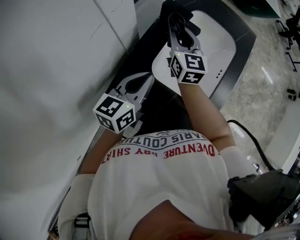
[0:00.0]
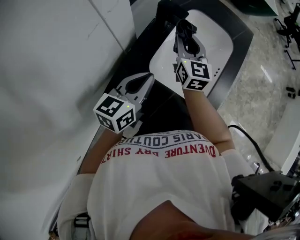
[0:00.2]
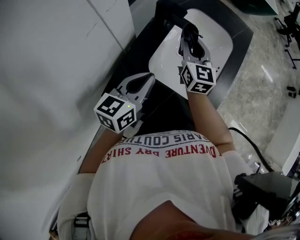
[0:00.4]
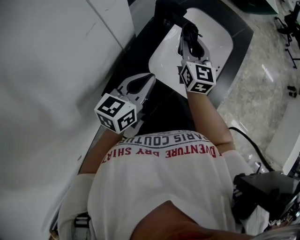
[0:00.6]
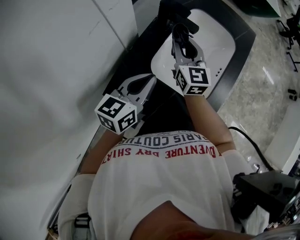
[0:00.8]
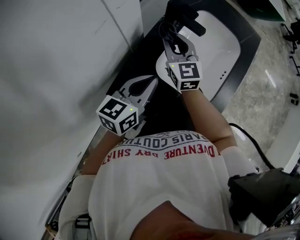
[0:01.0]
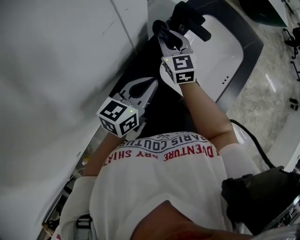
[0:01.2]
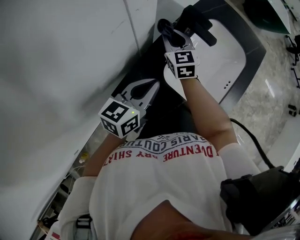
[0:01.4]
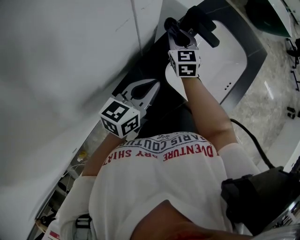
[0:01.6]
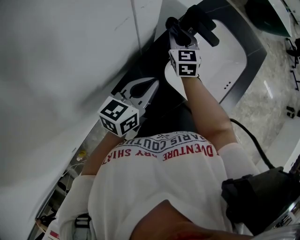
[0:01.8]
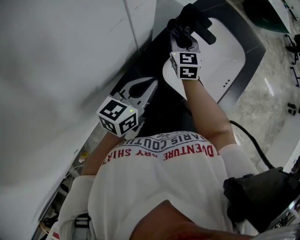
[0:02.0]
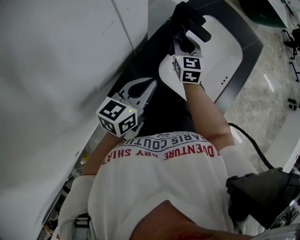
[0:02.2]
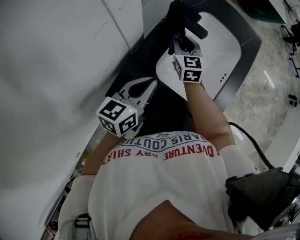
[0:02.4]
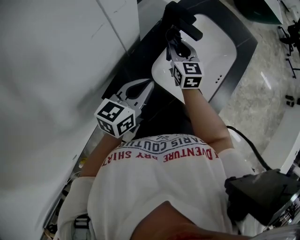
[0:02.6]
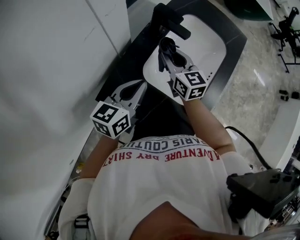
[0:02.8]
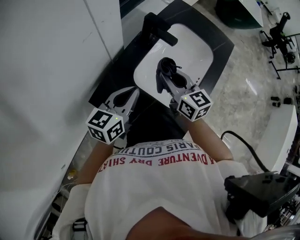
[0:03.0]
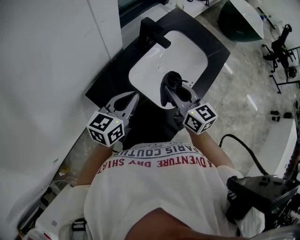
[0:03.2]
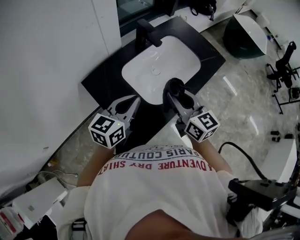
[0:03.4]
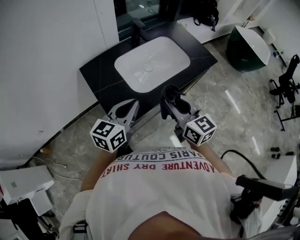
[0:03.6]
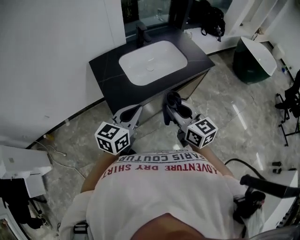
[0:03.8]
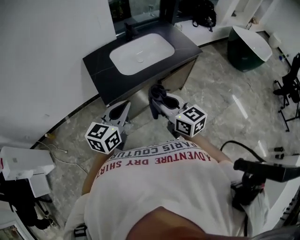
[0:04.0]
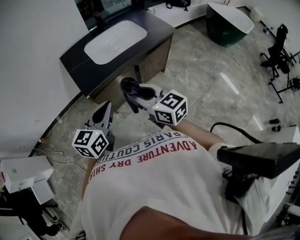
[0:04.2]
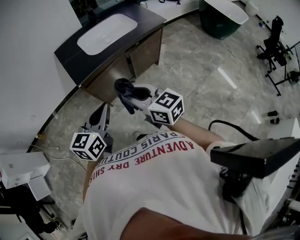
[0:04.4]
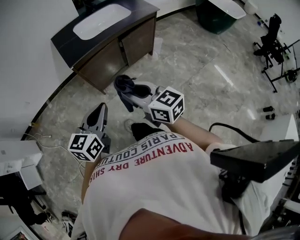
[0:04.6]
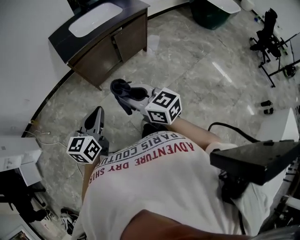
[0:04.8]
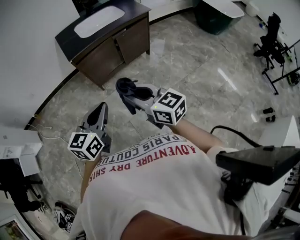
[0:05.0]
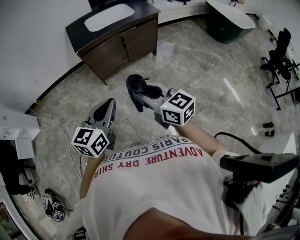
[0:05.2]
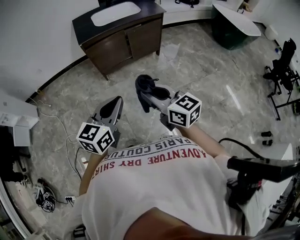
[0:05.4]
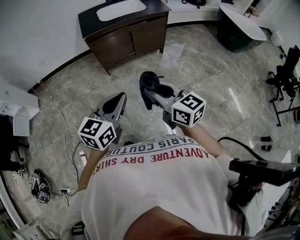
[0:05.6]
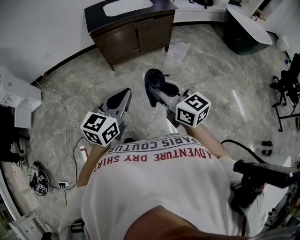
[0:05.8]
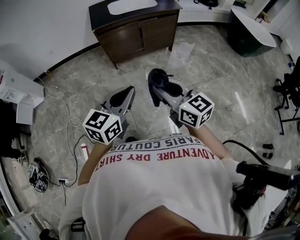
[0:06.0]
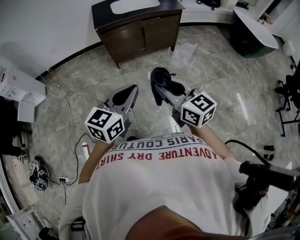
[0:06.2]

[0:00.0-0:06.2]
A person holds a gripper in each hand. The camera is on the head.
0.0 to 1.6 s: The right gripper goes some 10 cm downward and to the left, and swivels some 20 degrees.
1.6 to 3.2 s: The right gripper shifts approximately 30 cm backward, to the right and upward, and rotates approximately 30 degrees. Meanwhile the left gripper moves to the right, backward and upward, about 10 cm.
3.2 to 4.6 s: The two grippers travel together, some 70 cm. The right gripper rotates about 30 degrees, while the left gripper swivels about 30 degrees.
4.6 to 6.2 s: Both grippers move backward and to the right, some 35 cm.

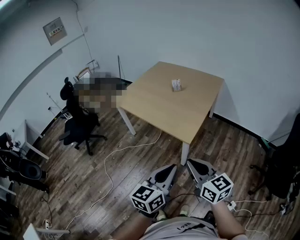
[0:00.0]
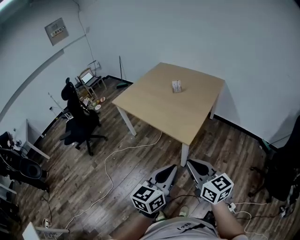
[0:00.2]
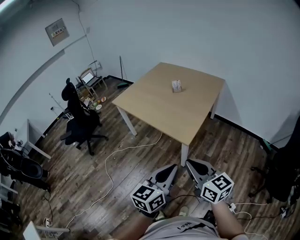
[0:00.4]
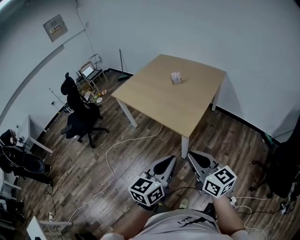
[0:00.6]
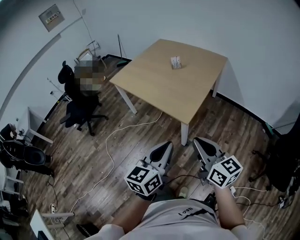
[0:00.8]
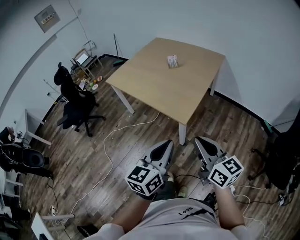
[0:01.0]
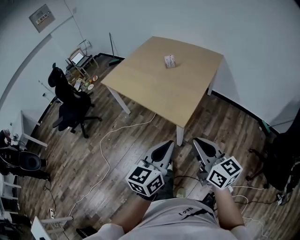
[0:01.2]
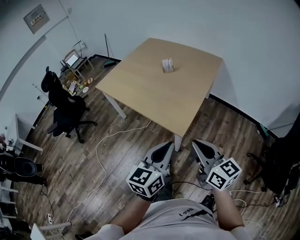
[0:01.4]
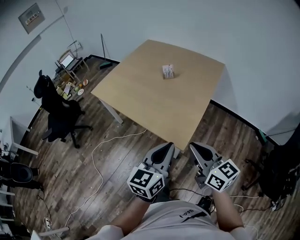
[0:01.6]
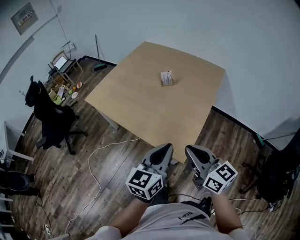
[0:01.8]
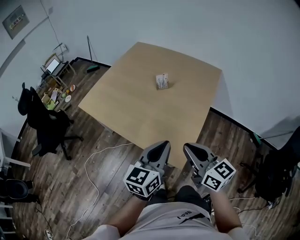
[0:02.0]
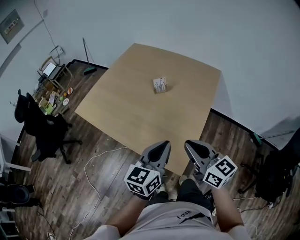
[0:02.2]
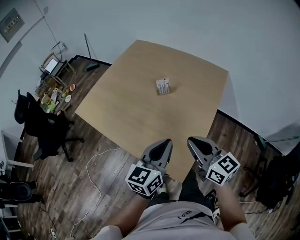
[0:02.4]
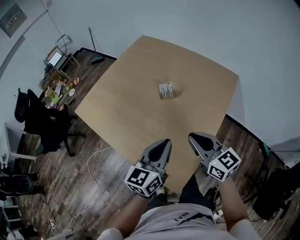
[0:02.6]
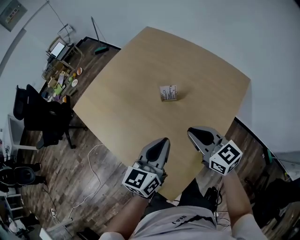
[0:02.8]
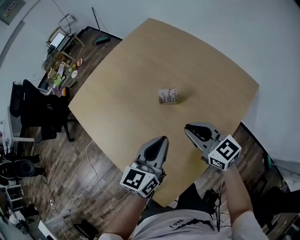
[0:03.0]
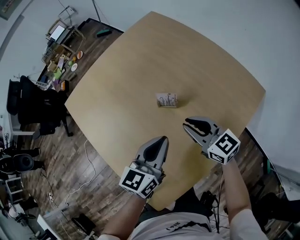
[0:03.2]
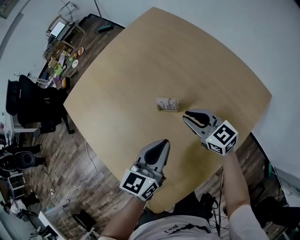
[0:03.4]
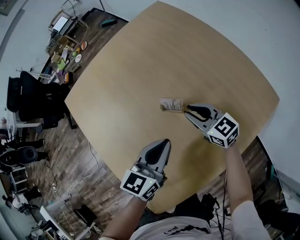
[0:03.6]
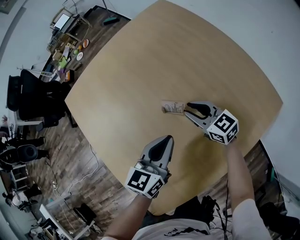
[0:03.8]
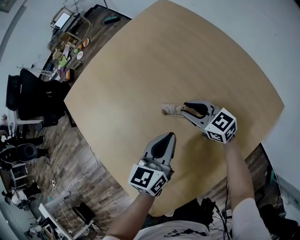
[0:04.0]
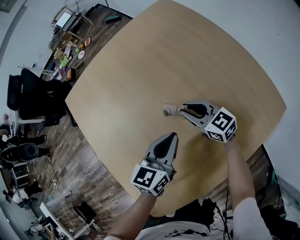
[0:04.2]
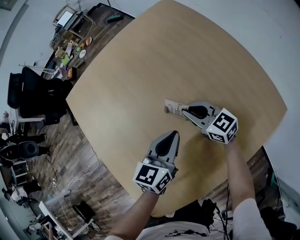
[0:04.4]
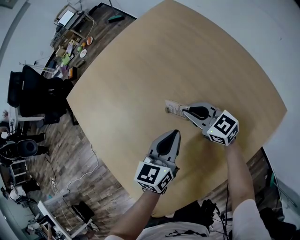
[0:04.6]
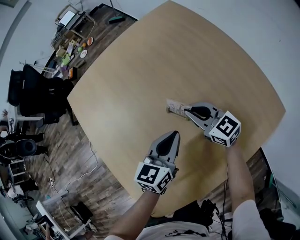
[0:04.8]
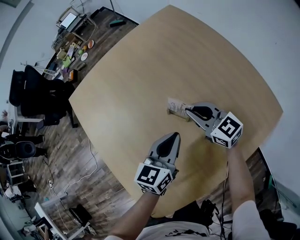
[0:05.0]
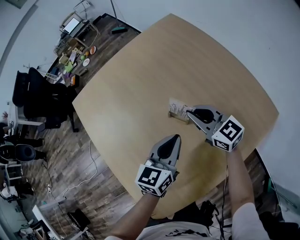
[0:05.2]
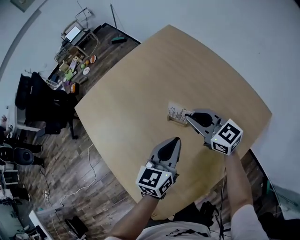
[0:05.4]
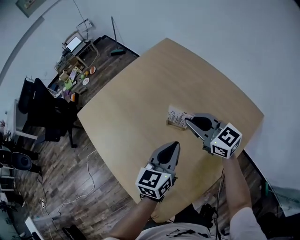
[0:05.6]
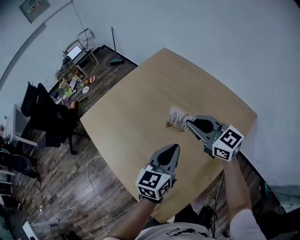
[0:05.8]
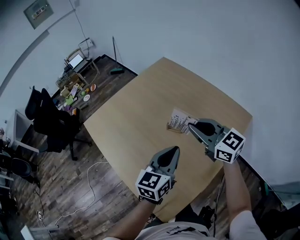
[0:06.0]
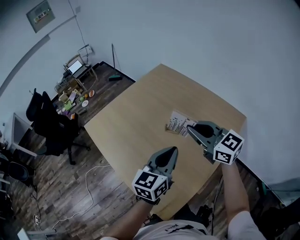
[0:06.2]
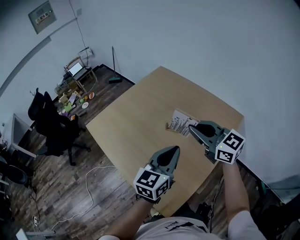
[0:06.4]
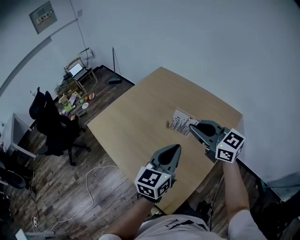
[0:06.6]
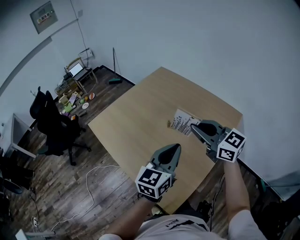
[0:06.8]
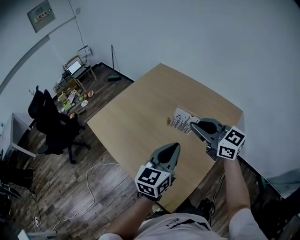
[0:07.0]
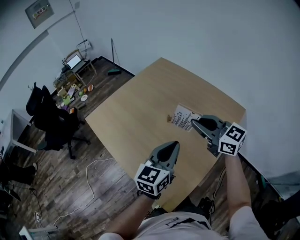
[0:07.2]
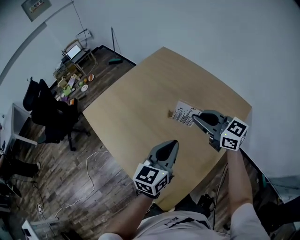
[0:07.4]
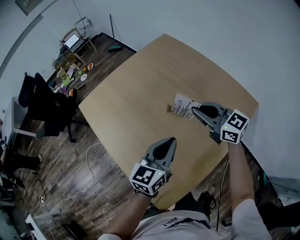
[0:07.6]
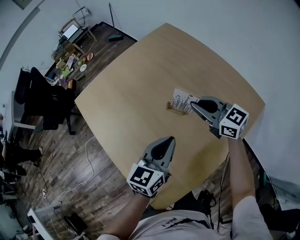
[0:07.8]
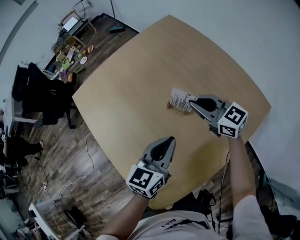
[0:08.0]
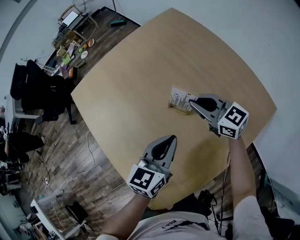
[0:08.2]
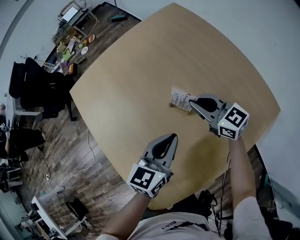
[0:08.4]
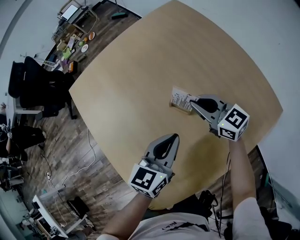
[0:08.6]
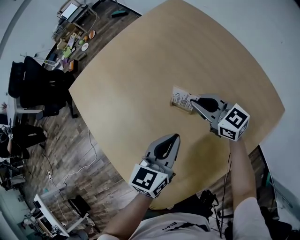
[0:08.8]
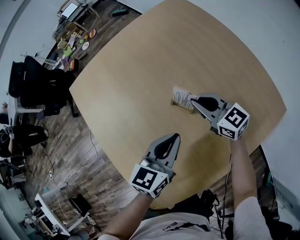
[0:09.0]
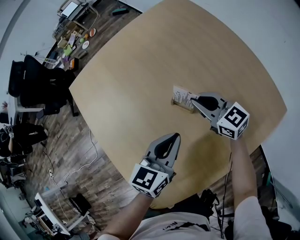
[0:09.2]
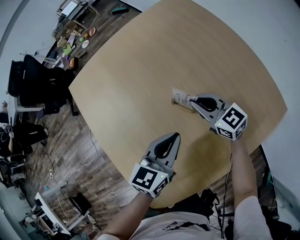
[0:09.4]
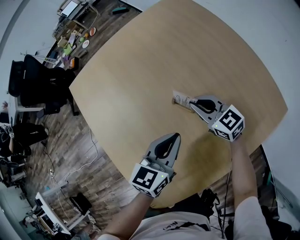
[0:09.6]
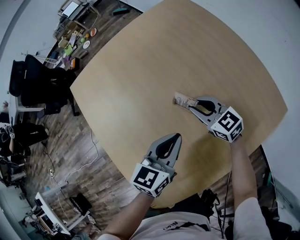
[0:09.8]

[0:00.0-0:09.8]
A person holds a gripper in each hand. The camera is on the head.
0.0 to 1.4 s: The left gripper is displaced forward by approximately 15 cm; the right gripper travels forward and to the right by about 15 cm.
1.4 to 2.8 s: The two grippers travel together, forward, about 50 cm. The right gripper changes its angle by about 20 degrees.
2.8 to 4.2 s: The left gripper goes approximately 20 cm downward, forward and to the right. Meanwhile the right gripper heads forward and downward, covering about 30 cm, and turns by some 30 degrees.
4.2 to 5.6 s: The left gripper shifts some 10 cm upward, while the right gripper travels upward by about 20 cm.
5.6 to 7.0 s: The grippers both shift upward and backward by about 20 cm.
7.0 to 8.4 s: Both grippers move downward and forward, some 30 cm.
8.4 to 9.8 s: The right gripper shifts roughly 10 cm downward.

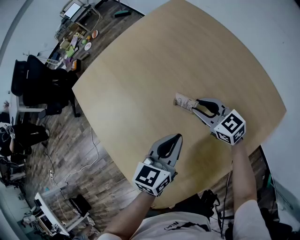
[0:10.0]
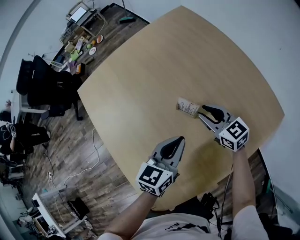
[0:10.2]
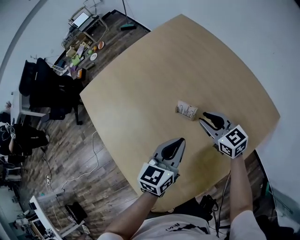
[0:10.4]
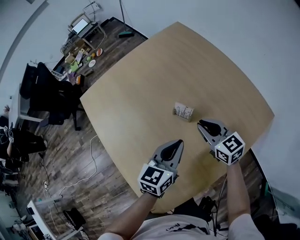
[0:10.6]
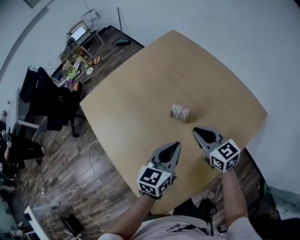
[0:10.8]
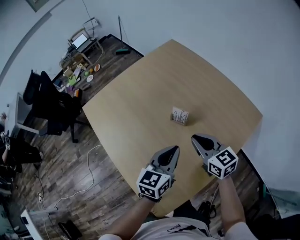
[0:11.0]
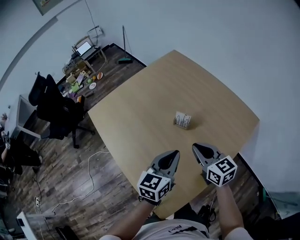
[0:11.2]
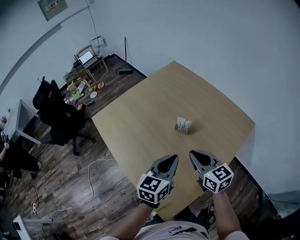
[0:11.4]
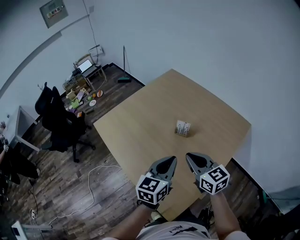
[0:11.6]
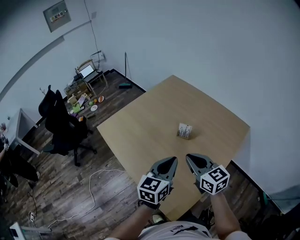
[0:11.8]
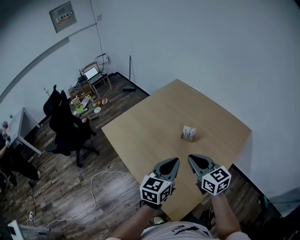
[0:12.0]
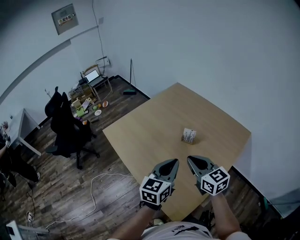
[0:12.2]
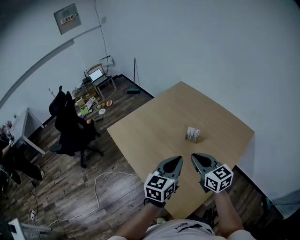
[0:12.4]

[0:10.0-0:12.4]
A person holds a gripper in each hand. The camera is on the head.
10.0 to 11.2 s: The left gripper moves upward and backward, approximately 15 cm; the right gripper shifts about 20 cm upward and backward, turns by approximately 20 degrees, and closes.
11.2 to 12.4 s: The right gripper shifts about 15 cm to the left, upward and backward; the left gripper travels upward, to the left and backward by some 15 cm.

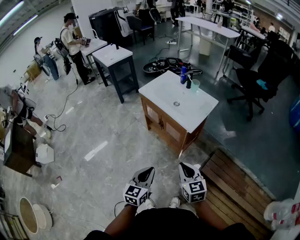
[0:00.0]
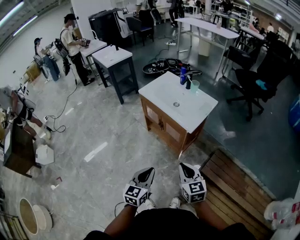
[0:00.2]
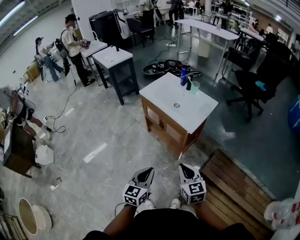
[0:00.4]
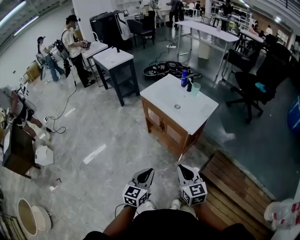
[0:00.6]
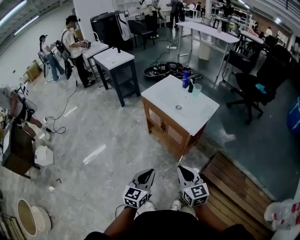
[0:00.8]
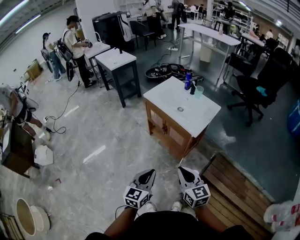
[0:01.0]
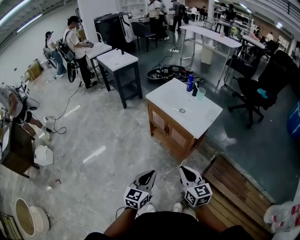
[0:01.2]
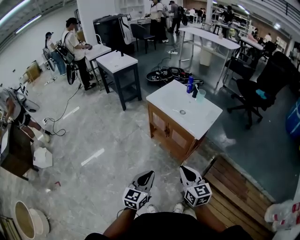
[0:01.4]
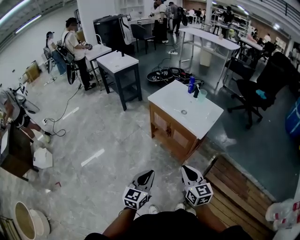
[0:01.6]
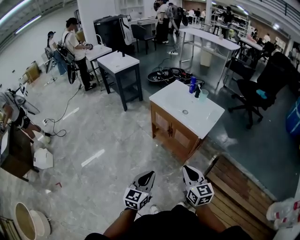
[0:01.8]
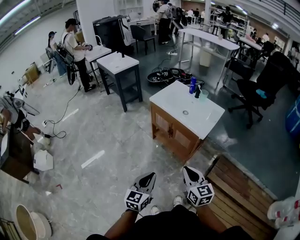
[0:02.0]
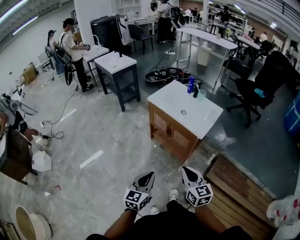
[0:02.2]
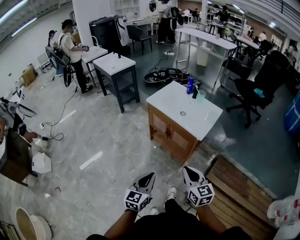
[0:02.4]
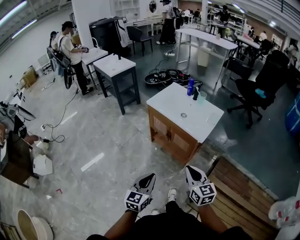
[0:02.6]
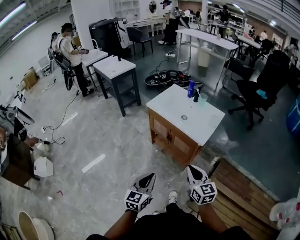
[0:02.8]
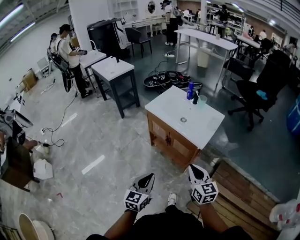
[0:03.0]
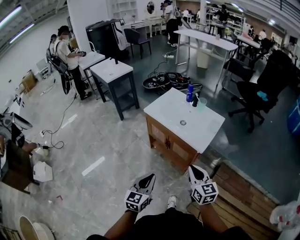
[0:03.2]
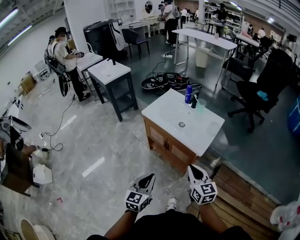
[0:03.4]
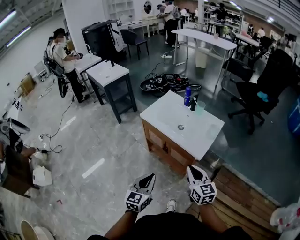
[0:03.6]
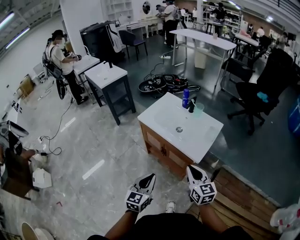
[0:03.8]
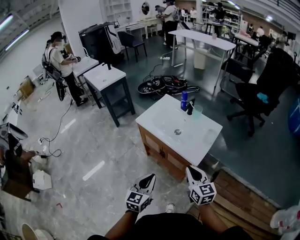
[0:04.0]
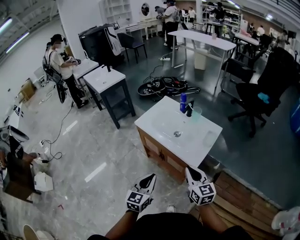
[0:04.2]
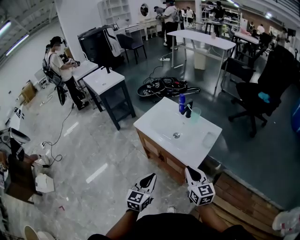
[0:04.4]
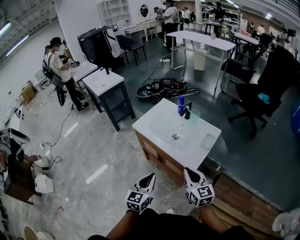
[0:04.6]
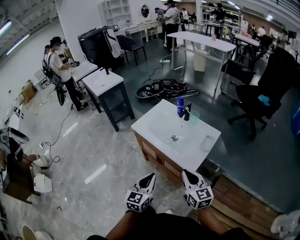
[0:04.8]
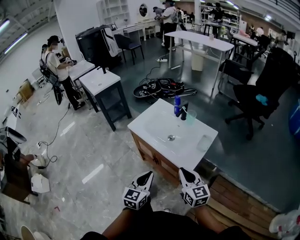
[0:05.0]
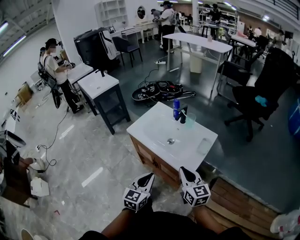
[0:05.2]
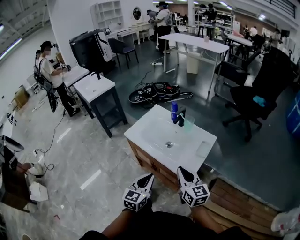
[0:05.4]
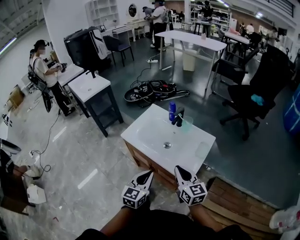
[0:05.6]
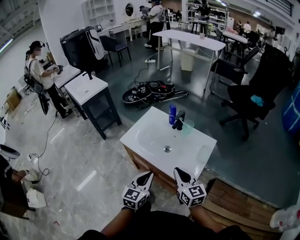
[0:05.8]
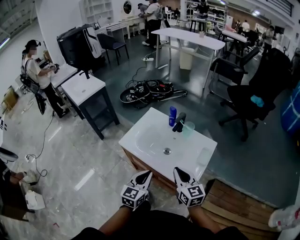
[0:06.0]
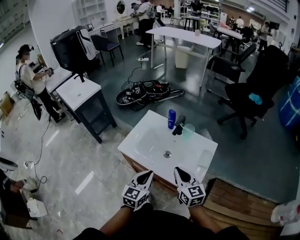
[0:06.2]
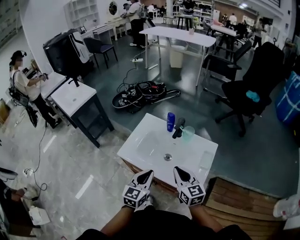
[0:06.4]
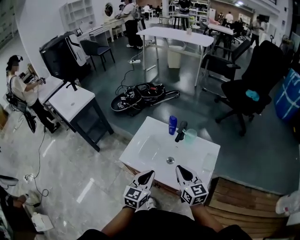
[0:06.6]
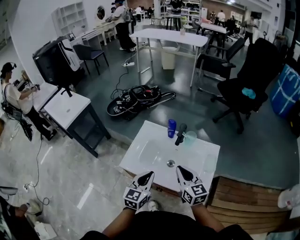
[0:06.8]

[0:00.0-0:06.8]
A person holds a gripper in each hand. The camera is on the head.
0.0 to 1.4 s: The grippers both shift to the left by some 10 cm.
1.4 to 2.8 s: The right gripper moves forward, roughly 5 cm. Meanwhile the left gripper shifts by approximately 5 cm.
2.8 to 4.0 s: The two grippers go about 15 cm forward.
4.0 to 5.4 s: The grippers both shift forward by roughly 10 cm.
5.4 to 6.8 s: The left gripper shifts some 20 cm forward, while the right gripper travels forward and to the left by roughly 20 cm.
